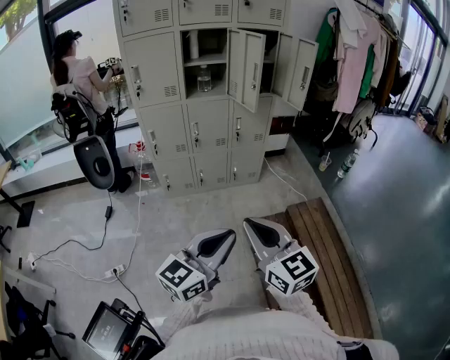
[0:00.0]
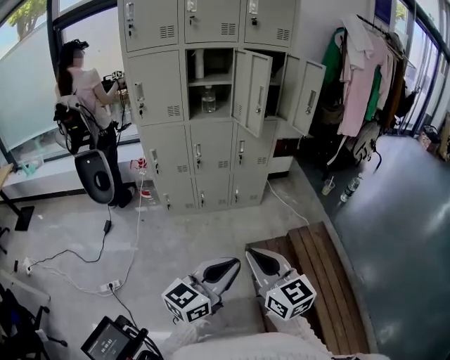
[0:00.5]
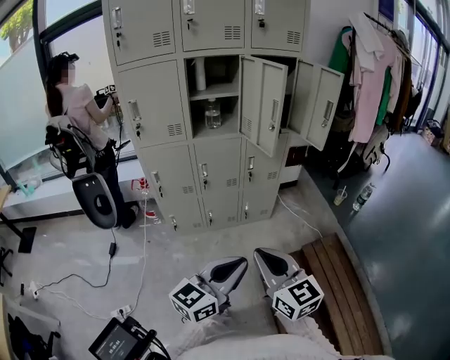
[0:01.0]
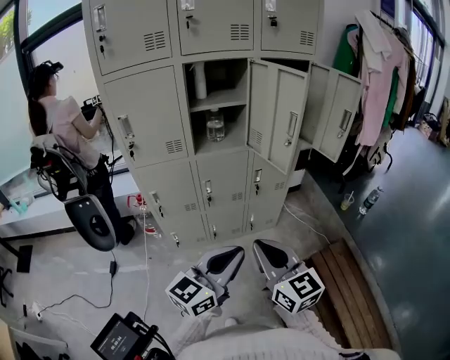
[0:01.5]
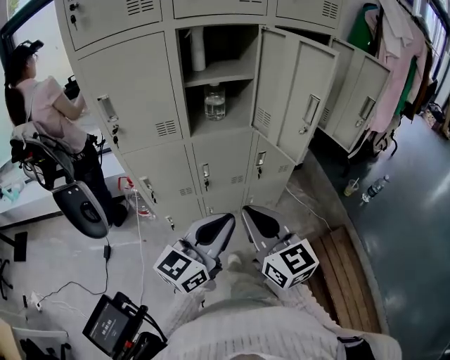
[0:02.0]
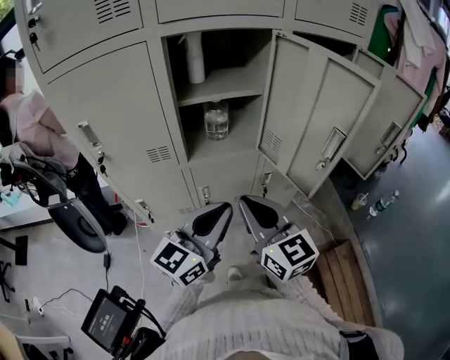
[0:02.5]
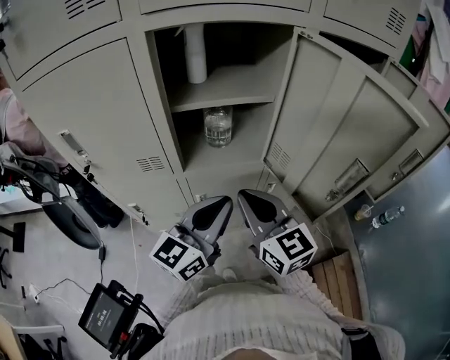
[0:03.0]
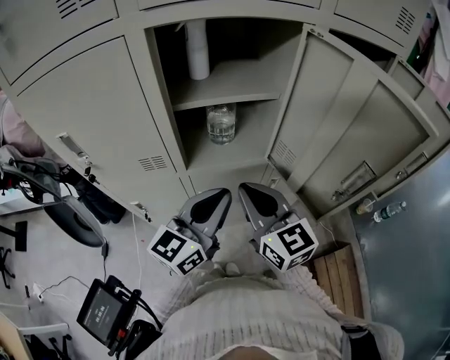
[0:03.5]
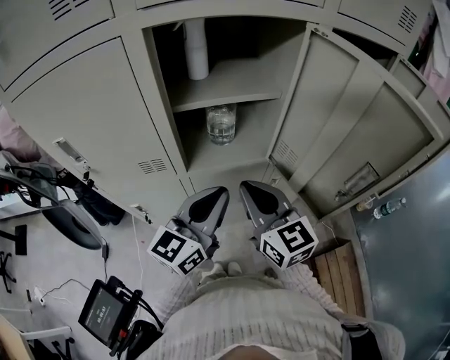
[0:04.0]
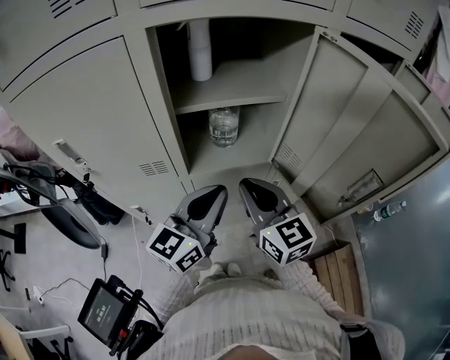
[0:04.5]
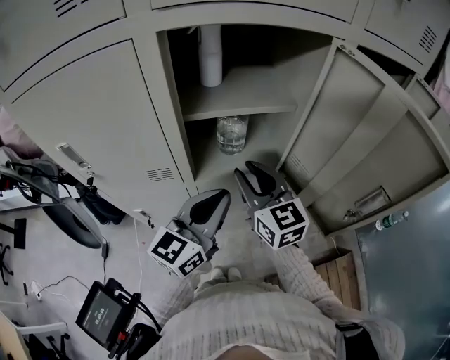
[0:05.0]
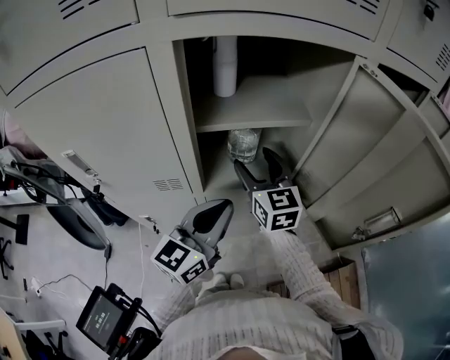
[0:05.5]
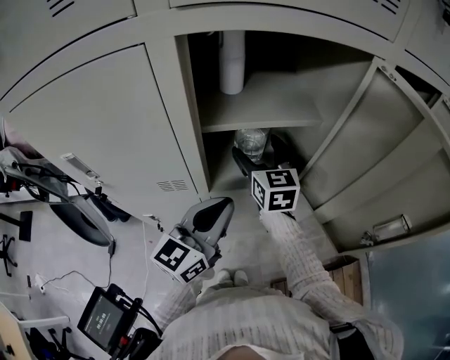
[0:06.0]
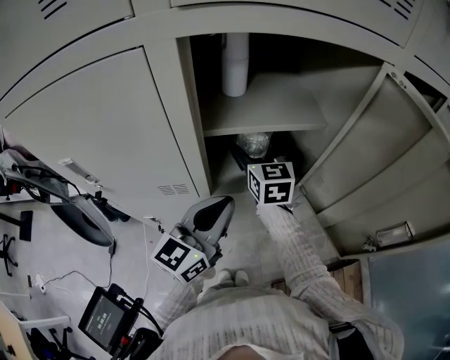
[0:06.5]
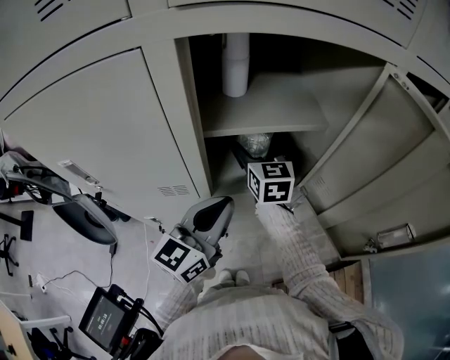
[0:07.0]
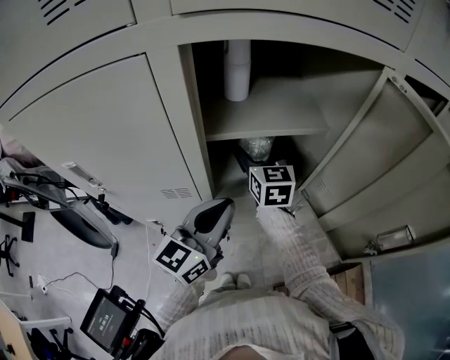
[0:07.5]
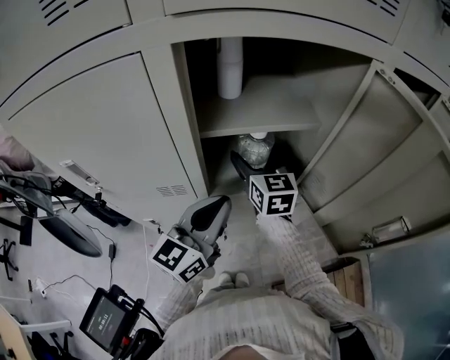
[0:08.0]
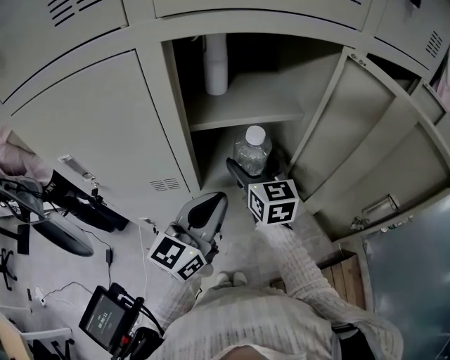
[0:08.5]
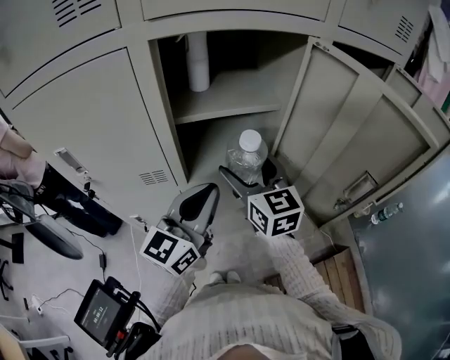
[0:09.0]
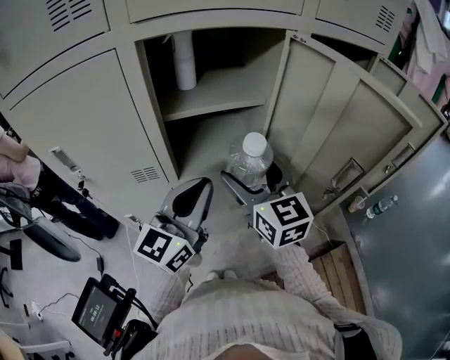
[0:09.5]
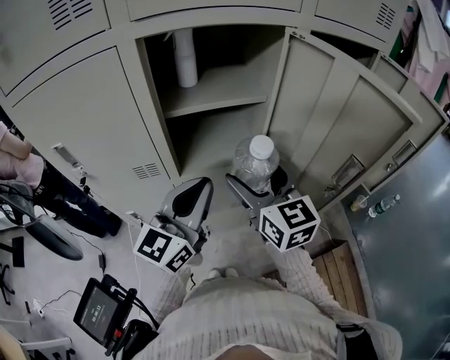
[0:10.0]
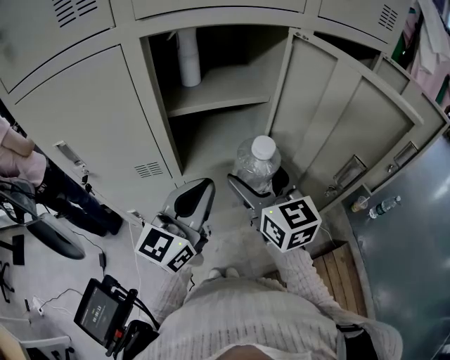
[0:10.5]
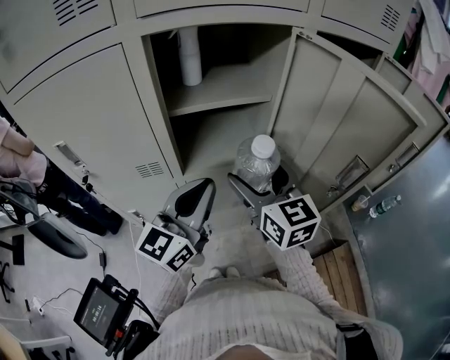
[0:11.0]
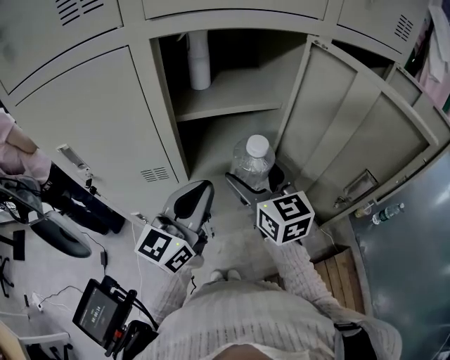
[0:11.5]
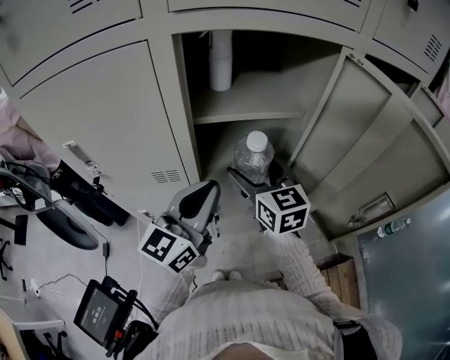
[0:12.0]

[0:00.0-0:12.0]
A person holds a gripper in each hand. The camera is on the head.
0:00.0 to 0:02.0: Both grippers are carried forward, roughly 40 cm.
0:02.0 to 0:04.0: Both grippers move forward, some 25 cm.
0:04.0 to 0:06.0: The right gripper heads forward, covering approximately 20 cm, and opens up. Meanwhile the left gripper heads to the left and forward, covering approximately 5 cm.
0:06.0 to 0:08.0: The grippers move only a little.
0:08.0 to 0:10.0: The left gripper heads backward and upward, covering some 10 cm, while the right gripper travels backward, to the right and upward by some 20 cm.
0:10.0 to 0:12.0: The left gripper moves roughly 5 cm. Meanwhile the right gripper travels forward and to the left by approximately 10 cm.

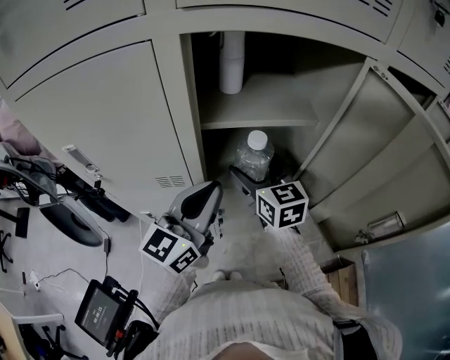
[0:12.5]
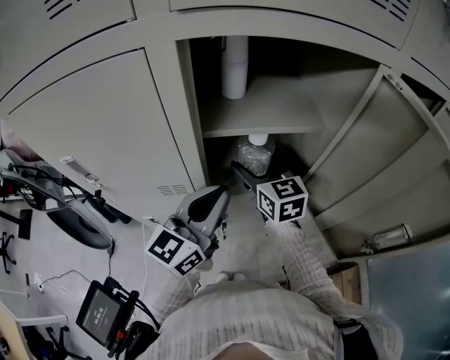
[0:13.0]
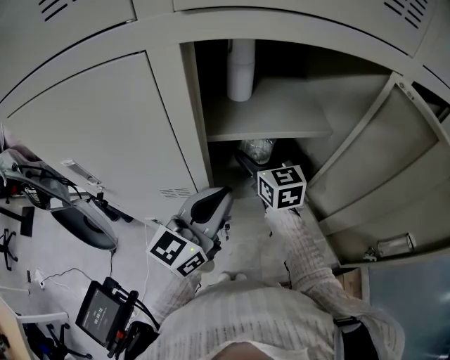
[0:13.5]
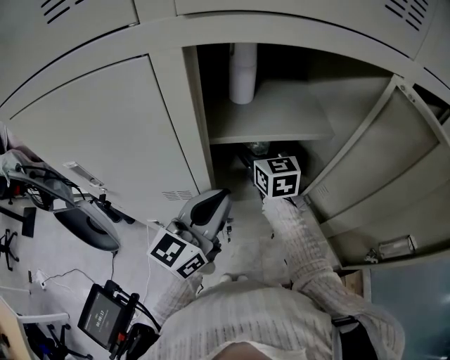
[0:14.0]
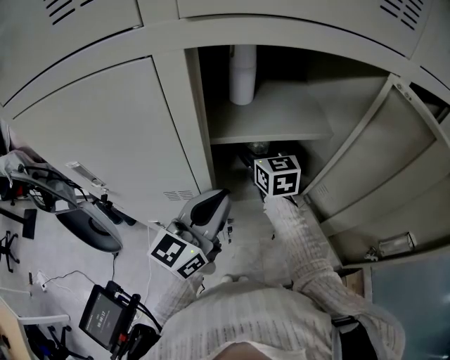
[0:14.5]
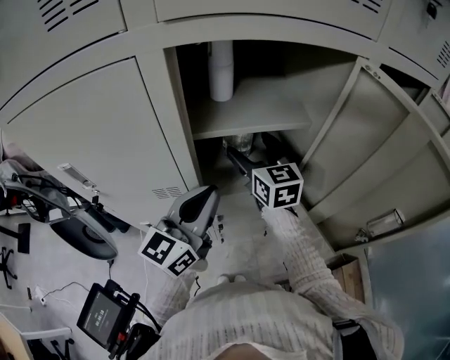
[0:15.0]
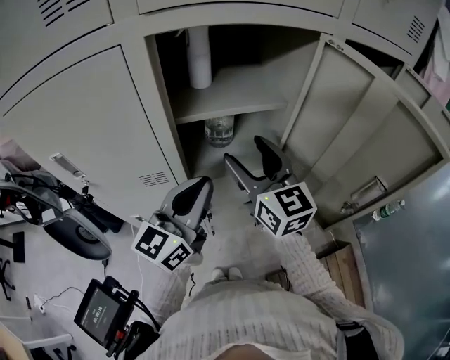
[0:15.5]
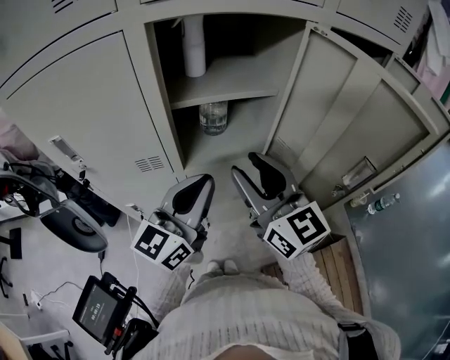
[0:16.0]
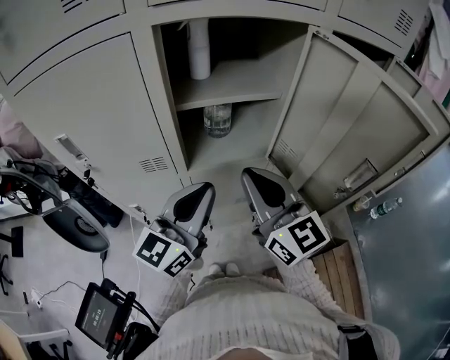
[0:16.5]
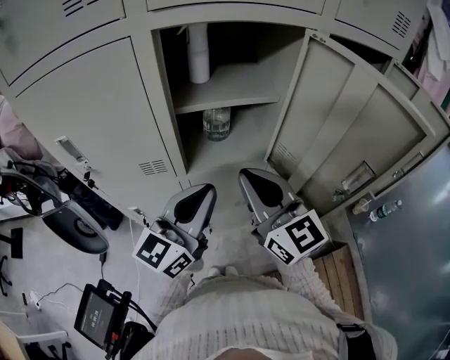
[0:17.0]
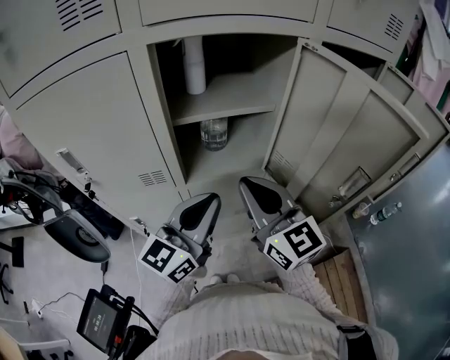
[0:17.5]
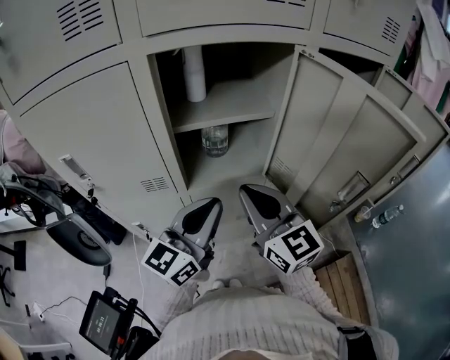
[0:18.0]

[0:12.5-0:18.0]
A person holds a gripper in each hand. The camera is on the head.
0:12.5 to 0:14.5: The right gripper travels forward by roughly 10 cm.
0:14.5 to 0:16.0: The right gripper goes about 30 cm backward and upward, and closes its fingers. Meanwhile the left gripper heads backward, covering some 10 cm.
0:16.0 to 0:18.0: The right gripper closes up.

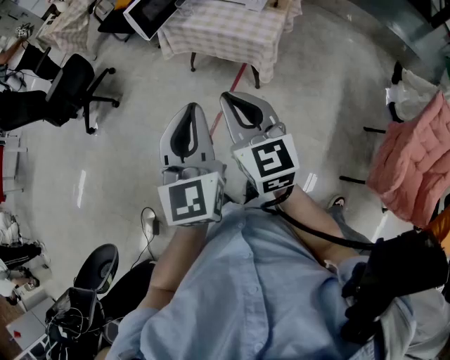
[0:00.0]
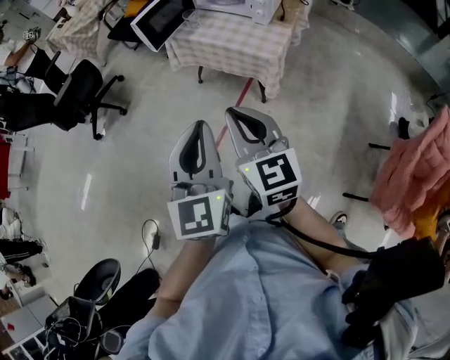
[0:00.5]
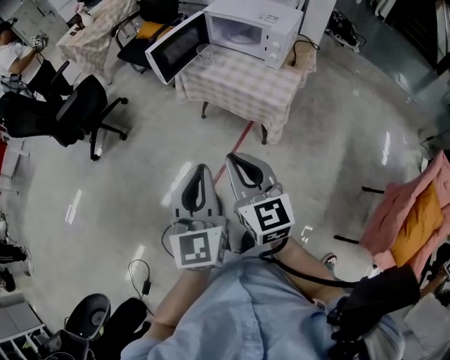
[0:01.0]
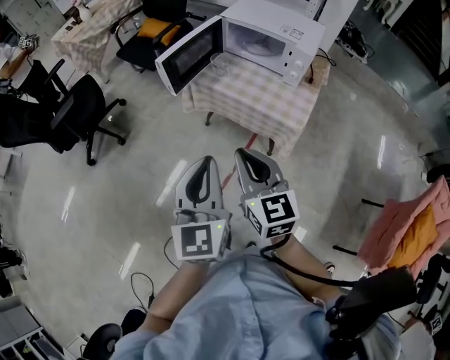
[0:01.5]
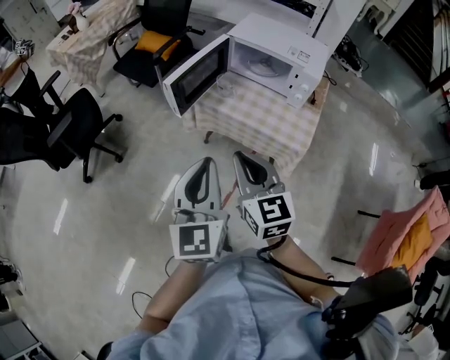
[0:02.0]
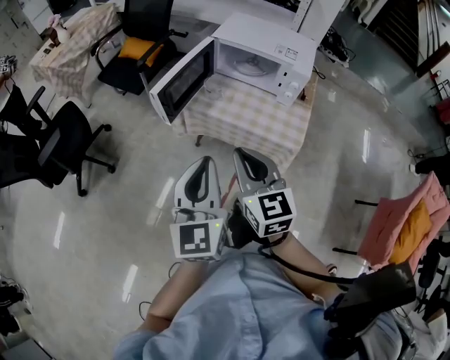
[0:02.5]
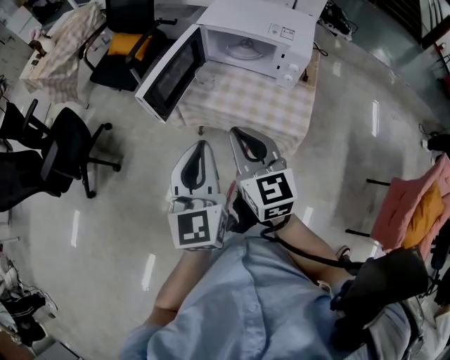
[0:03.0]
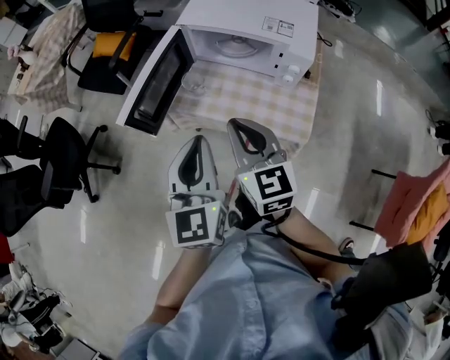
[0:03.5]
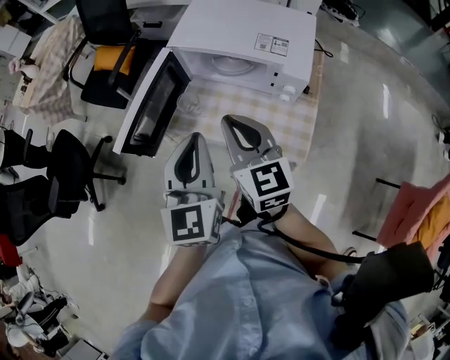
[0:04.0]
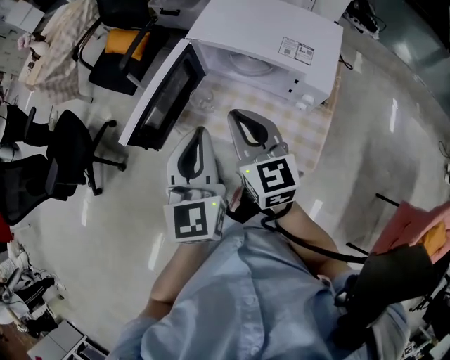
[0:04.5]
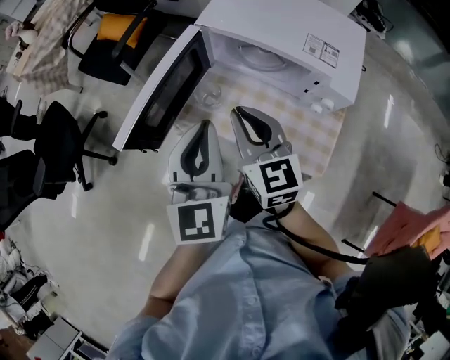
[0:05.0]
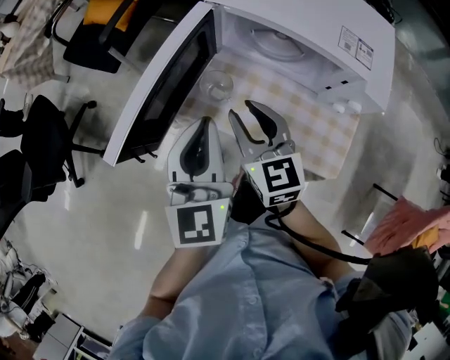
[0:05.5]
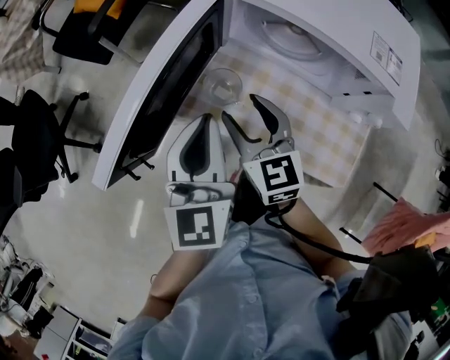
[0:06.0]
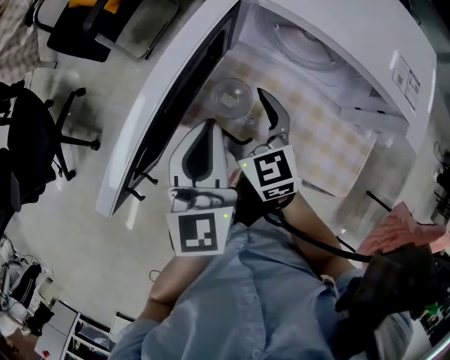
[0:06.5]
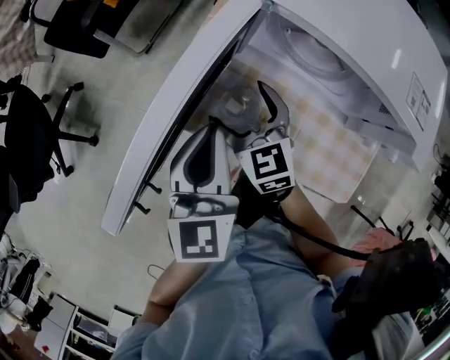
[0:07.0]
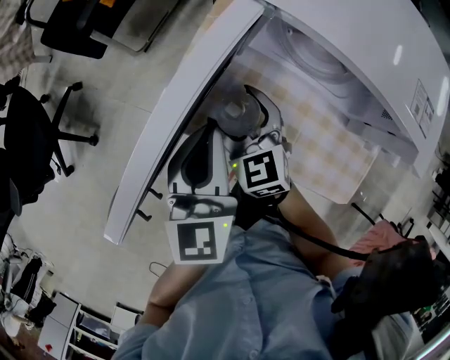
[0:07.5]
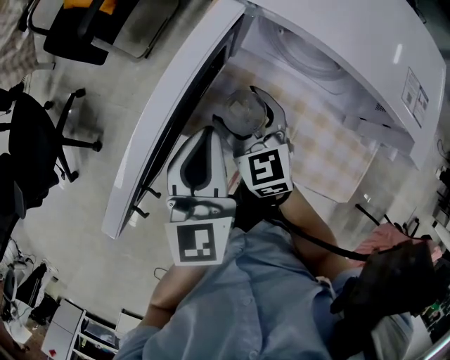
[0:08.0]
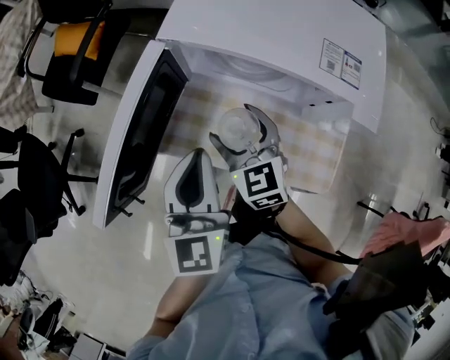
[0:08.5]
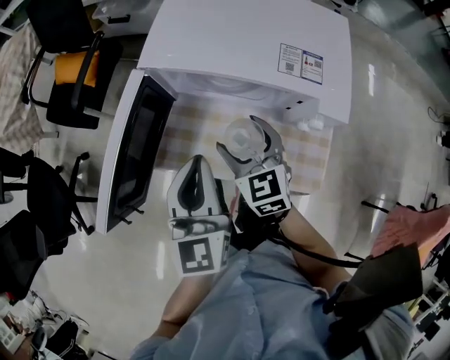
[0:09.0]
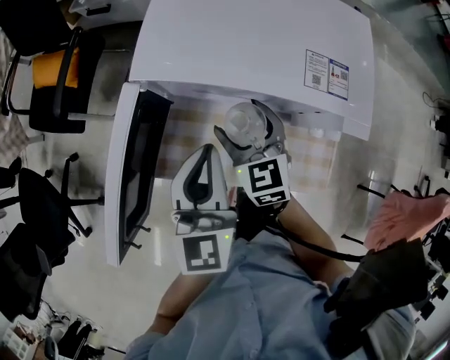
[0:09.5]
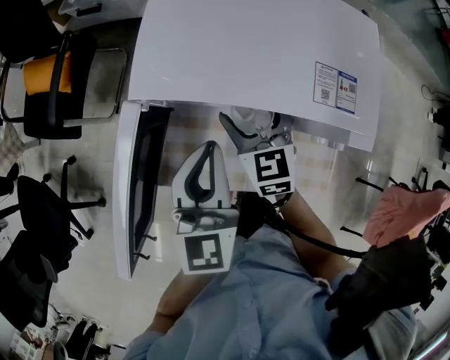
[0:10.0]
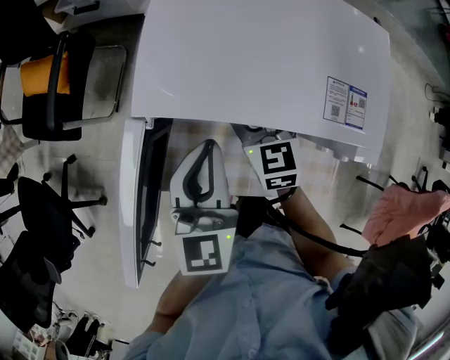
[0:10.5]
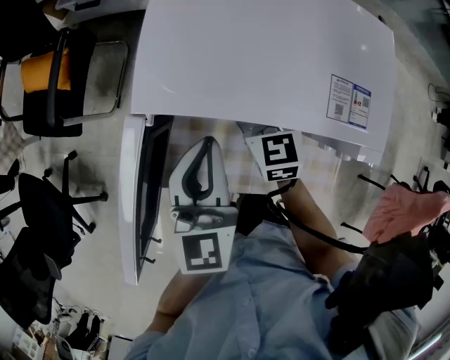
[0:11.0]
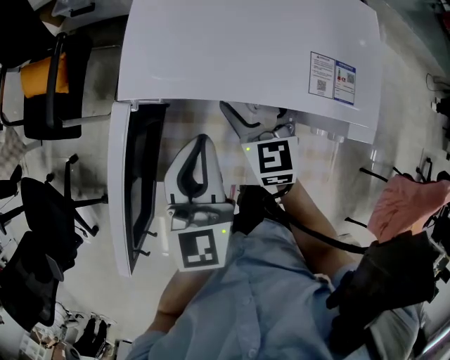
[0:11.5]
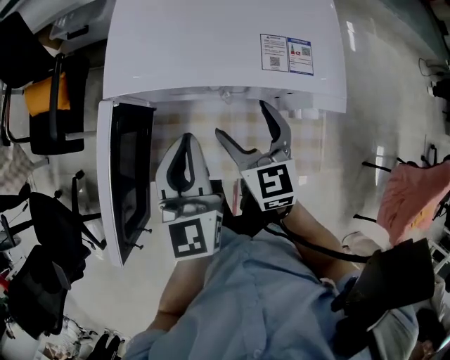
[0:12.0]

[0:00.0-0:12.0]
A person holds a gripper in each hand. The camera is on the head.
0:00.0 to 0:02.0: Both grippers travel together forward, approximately 30 cm.
0:02.0 to 0:04.0: Both grippers travel together forward and to the right, some 30 cm.
0:04.0 to 0:06.0: The left gripper travels downward, forward and to the left by some 25 cm. The right gripper shifts about 25 cm downward and forward, and opens its fingers.
0:06.0 to 0:08.0: The left gripper changes place by approximately 5 cm. Meanwhile the right gripper moves forward and downward, about 10 cm.
0:08.0 to 0:10.0: The left gripper moves to the right, forward and upward, about 15 cm, while the right gripper is displaced to the right and forward by some 15 cm, and swivels about 20 degrees.
0:10.0 to 0:12.0: The right gripper heads backward, covering about 5 cm.
